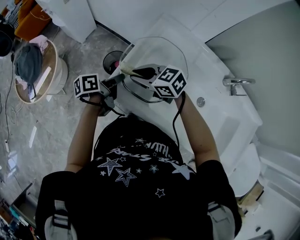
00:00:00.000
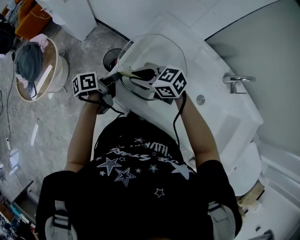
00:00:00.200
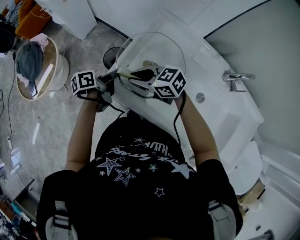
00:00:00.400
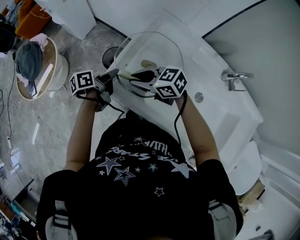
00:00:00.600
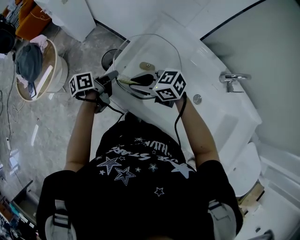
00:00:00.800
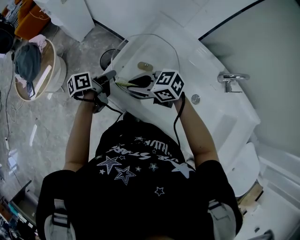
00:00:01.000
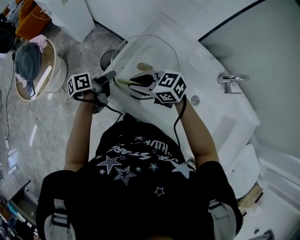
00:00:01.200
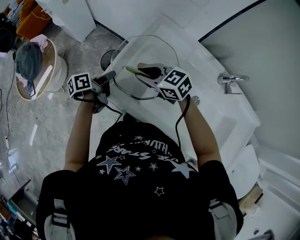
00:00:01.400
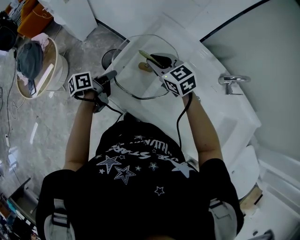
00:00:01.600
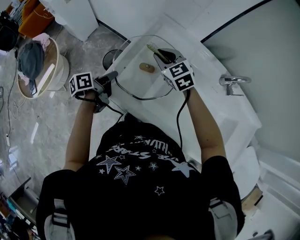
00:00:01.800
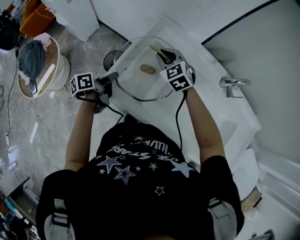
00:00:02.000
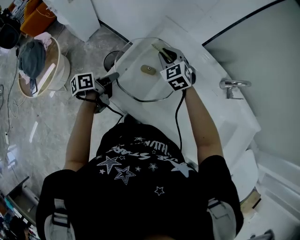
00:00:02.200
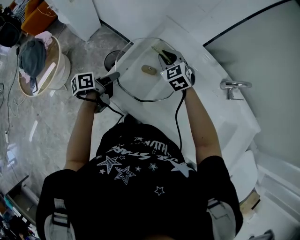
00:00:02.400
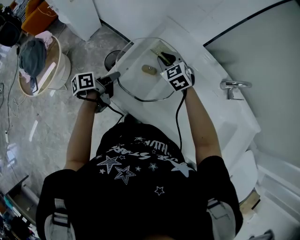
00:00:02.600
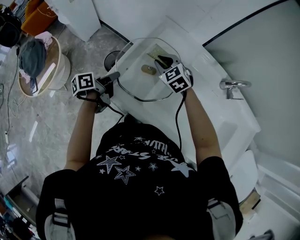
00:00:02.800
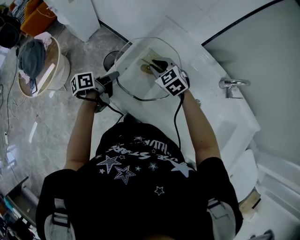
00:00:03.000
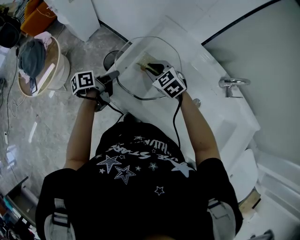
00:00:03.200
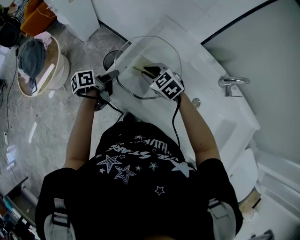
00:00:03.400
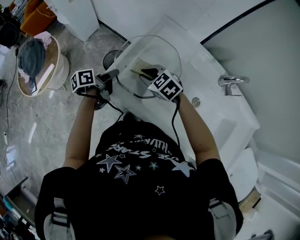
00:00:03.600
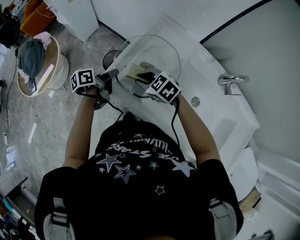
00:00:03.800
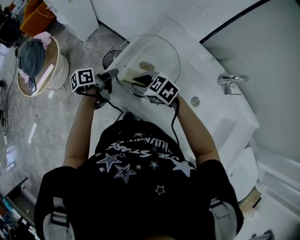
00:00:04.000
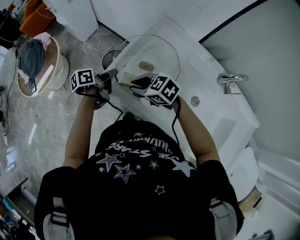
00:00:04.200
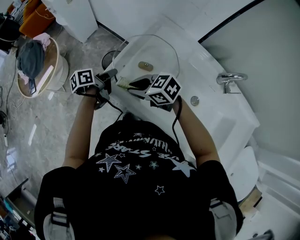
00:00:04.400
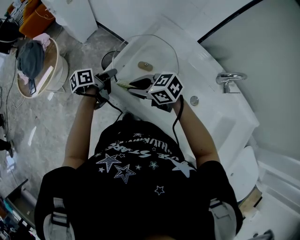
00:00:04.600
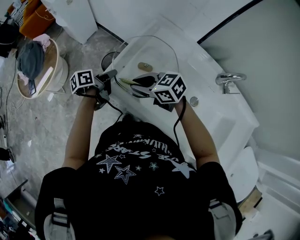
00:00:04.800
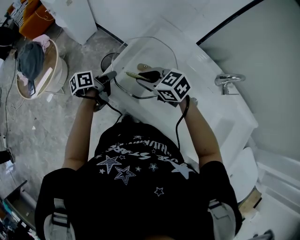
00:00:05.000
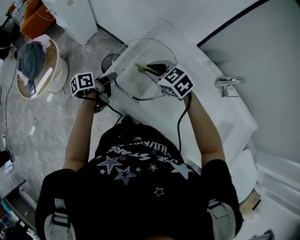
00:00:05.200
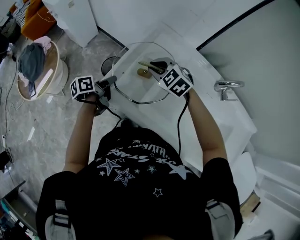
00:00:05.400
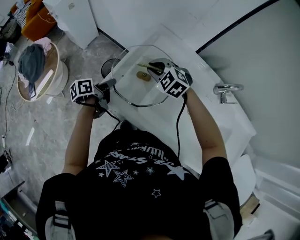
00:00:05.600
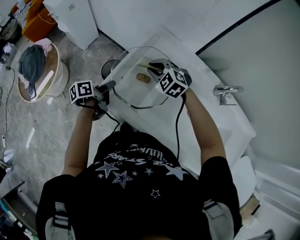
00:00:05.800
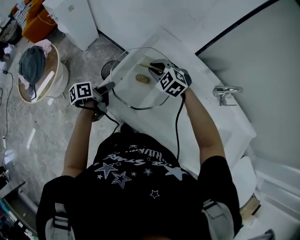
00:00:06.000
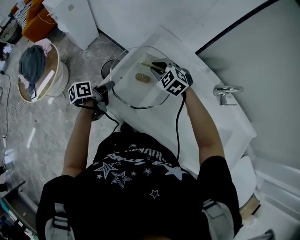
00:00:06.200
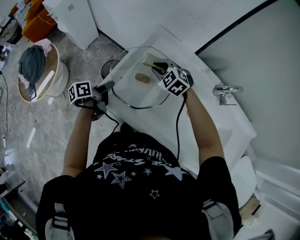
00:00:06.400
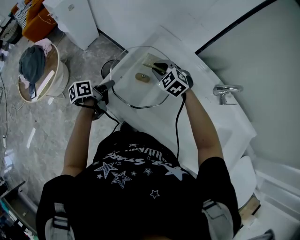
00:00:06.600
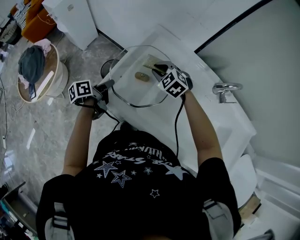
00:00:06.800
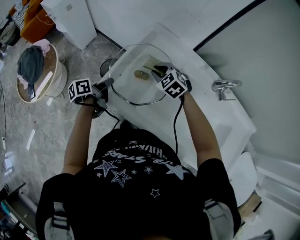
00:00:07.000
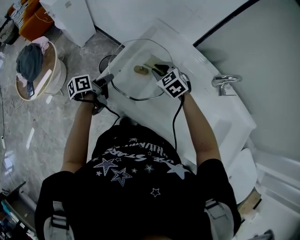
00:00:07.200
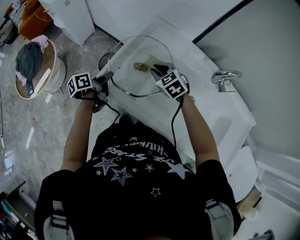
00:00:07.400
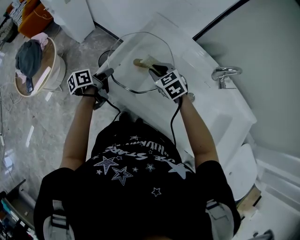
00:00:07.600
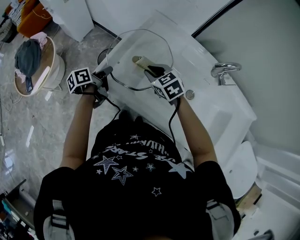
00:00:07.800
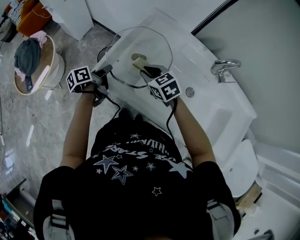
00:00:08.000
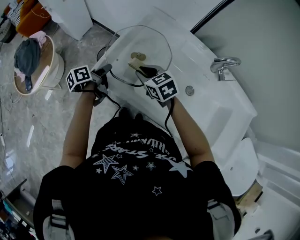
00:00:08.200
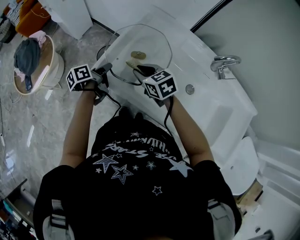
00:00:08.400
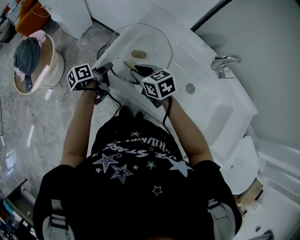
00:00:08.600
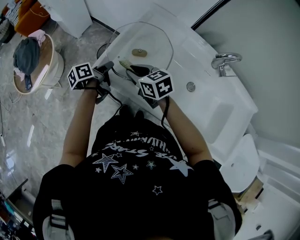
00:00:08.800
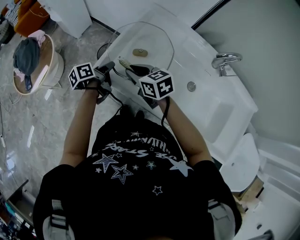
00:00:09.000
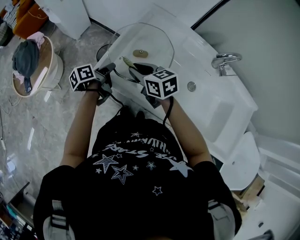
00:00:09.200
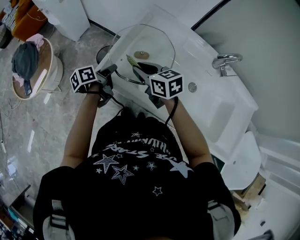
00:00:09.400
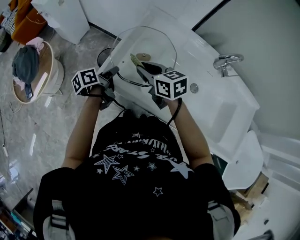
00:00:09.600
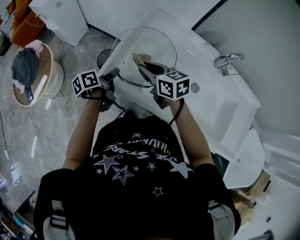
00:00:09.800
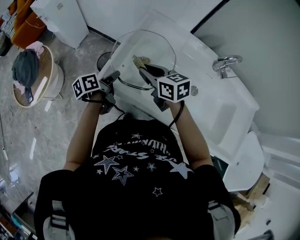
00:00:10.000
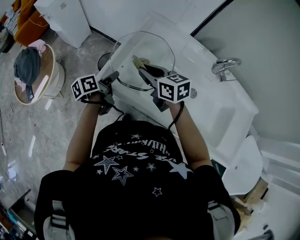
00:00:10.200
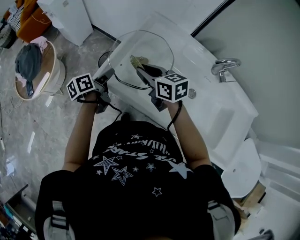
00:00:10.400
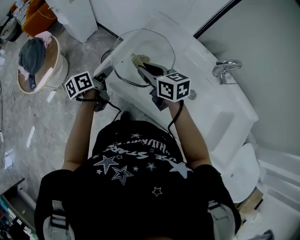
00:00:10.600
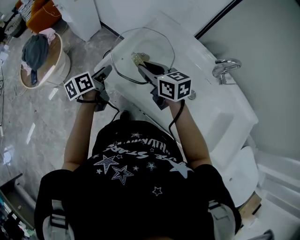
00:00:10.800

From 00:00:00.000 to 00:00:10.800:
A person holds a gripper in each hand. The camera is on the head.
From 00:00:00.000 to 00:00:01.600: The right gripper changes place by roughly 10 cm, and changes its angle by roughly 20 degrees.
From 00:00:01.600 to 00:00:03.000: The right gripper travels downward by some 5 cm, and changes its angle by roughly 20 degrees.
From 00:00:03.000 to 00:00:04.600: The right gripper moves some 15 cm, and rotates approximately 40 degrees.
From 00:00:04.600 to 00:00:06.200: The right gripper shifts by some 20 cm, and changes its angle by about 50 degrees.
From 00:00:06.200 to 00:00:07.800: The right gripper moves backward, some 10 cm, and rotates approximately 30 degrees.
From 00:00:07.800 to 00:00:09.200: The right gripper travels to the left by roughly 5 cm, and swivels about 30 degrees.
From 00:00:09.200 to 00:00:10.800: The right gripper ends up roughly 5 cm from where it was, while the left gripper shifts roughly 5 cm upward, and swivels about 20 degrees.

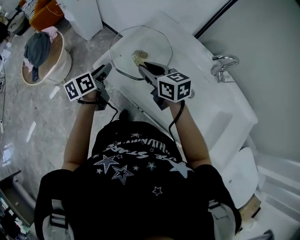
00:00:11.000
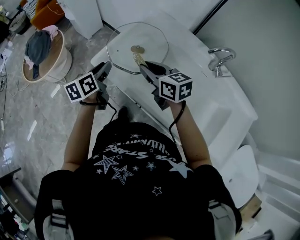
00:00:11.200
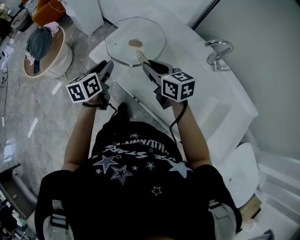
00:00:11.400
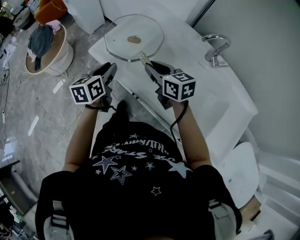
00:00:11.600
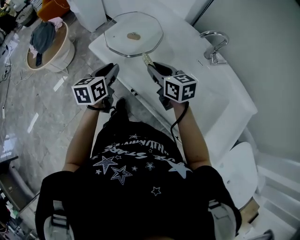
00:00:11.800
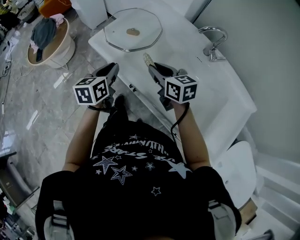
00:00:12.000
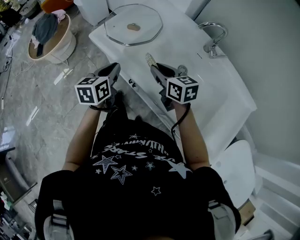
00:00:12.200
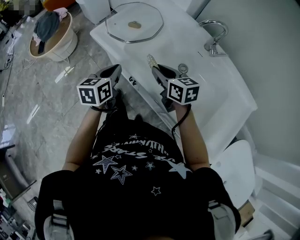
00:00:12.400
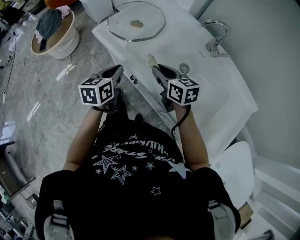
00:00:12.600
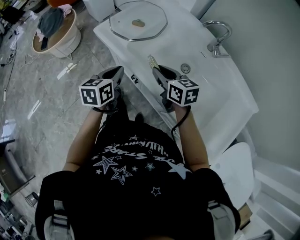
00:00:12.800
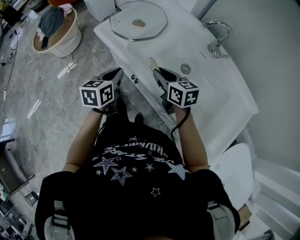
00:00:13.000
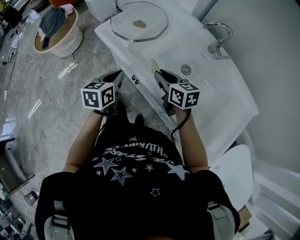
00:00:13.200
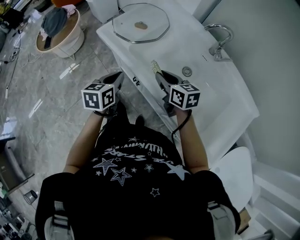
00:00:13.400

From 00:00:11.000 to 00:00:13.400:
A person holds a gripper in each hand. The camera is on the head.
From 00:00:11.000 to 00:00:12.200: Both grippers travel together backward and to the right, approximately 20 cm. The left gripper turns by approximately 20 degrees, and closes up.
From 00:00:12.200 to 00:00:13.400: The left gripper moves backward, some 5 cm.

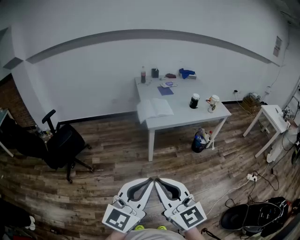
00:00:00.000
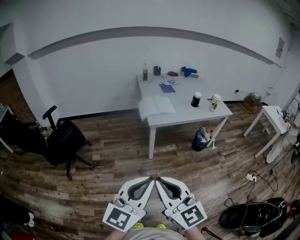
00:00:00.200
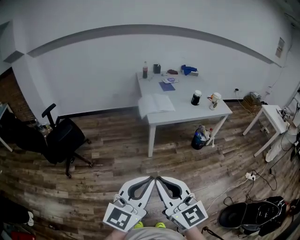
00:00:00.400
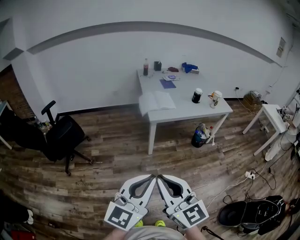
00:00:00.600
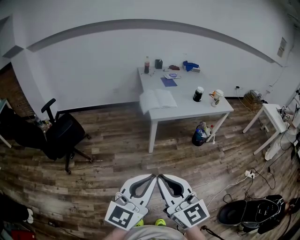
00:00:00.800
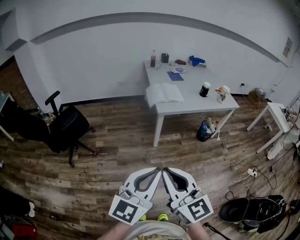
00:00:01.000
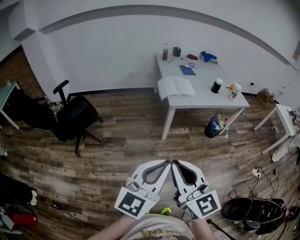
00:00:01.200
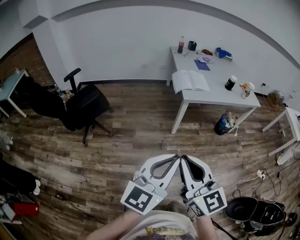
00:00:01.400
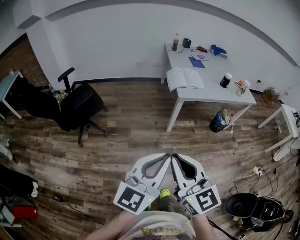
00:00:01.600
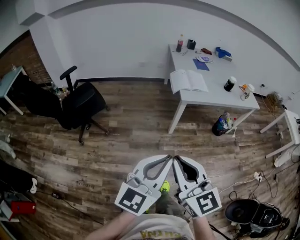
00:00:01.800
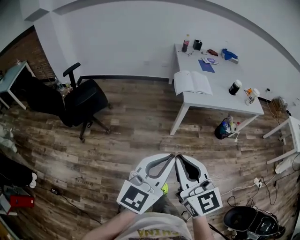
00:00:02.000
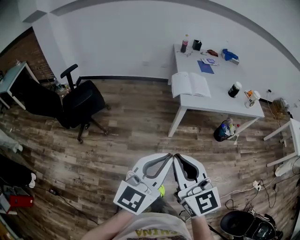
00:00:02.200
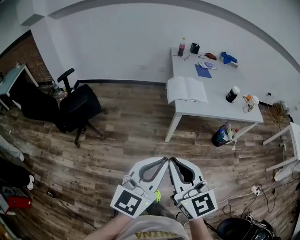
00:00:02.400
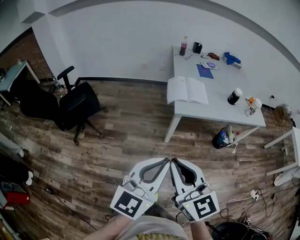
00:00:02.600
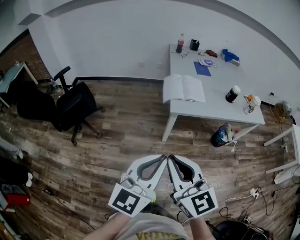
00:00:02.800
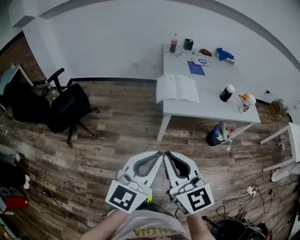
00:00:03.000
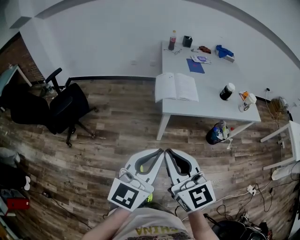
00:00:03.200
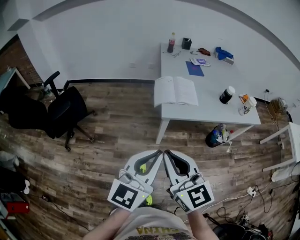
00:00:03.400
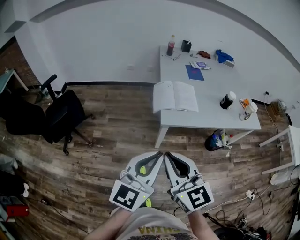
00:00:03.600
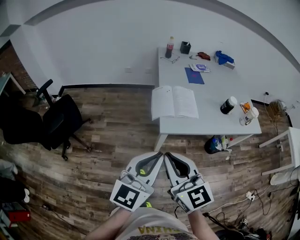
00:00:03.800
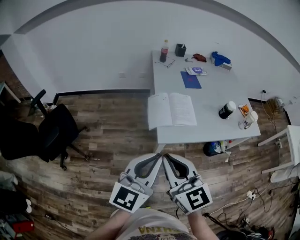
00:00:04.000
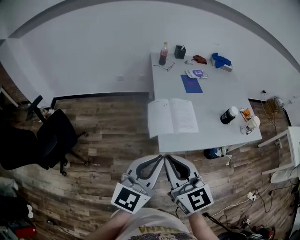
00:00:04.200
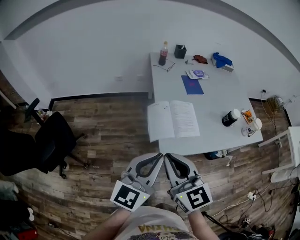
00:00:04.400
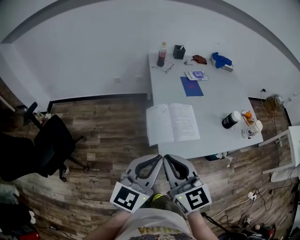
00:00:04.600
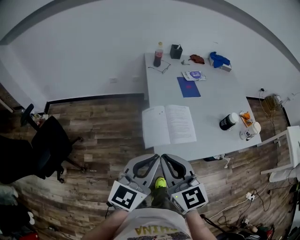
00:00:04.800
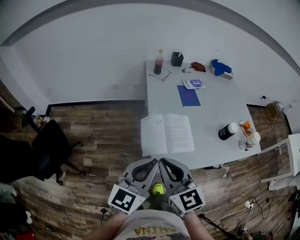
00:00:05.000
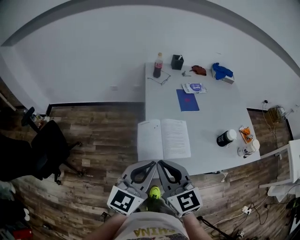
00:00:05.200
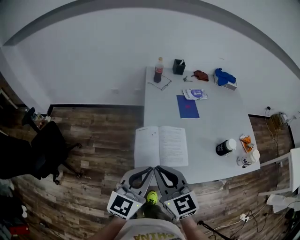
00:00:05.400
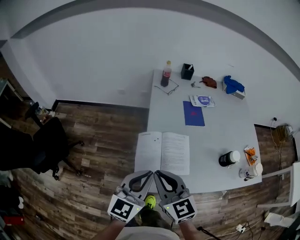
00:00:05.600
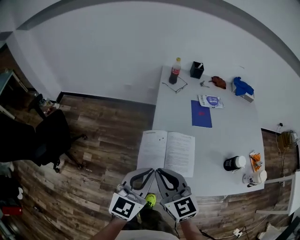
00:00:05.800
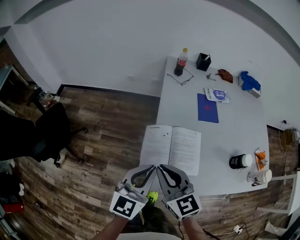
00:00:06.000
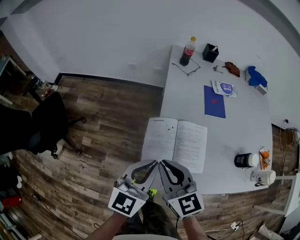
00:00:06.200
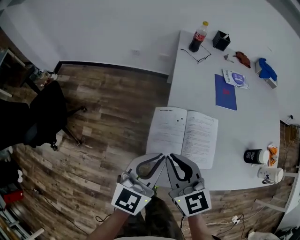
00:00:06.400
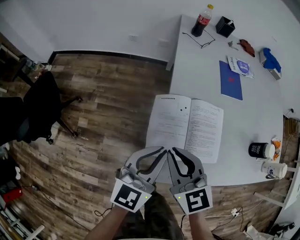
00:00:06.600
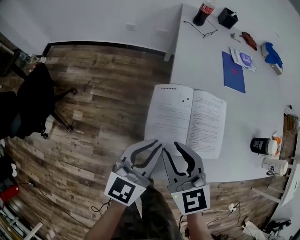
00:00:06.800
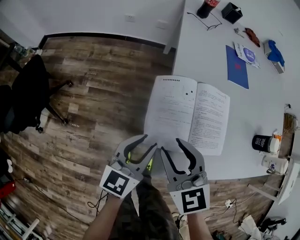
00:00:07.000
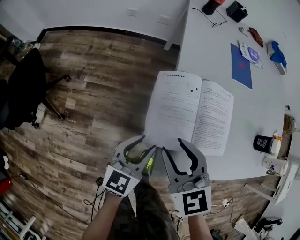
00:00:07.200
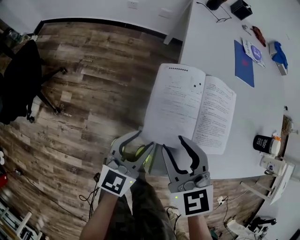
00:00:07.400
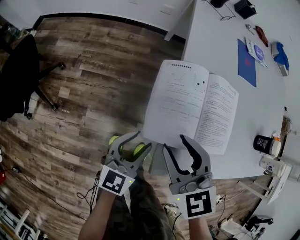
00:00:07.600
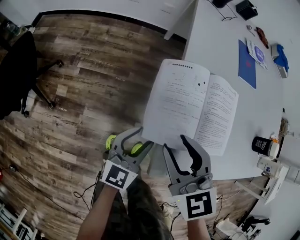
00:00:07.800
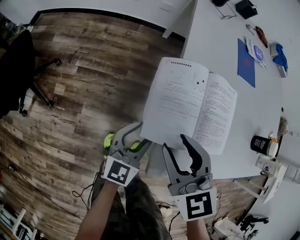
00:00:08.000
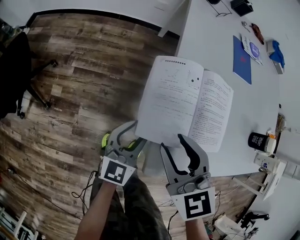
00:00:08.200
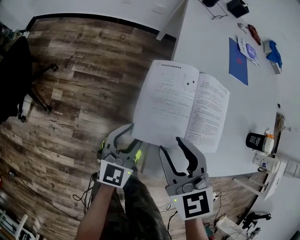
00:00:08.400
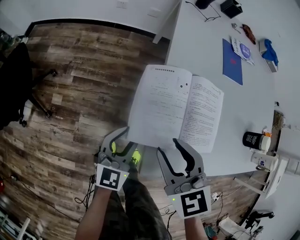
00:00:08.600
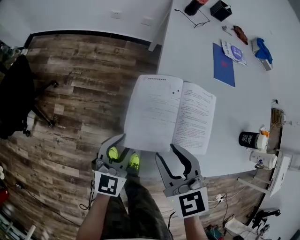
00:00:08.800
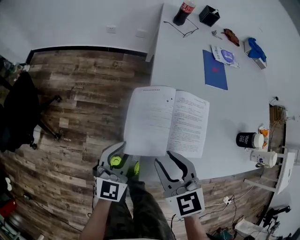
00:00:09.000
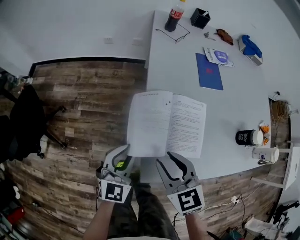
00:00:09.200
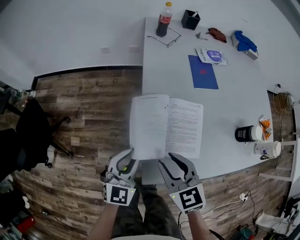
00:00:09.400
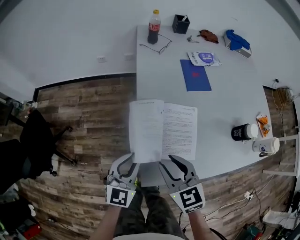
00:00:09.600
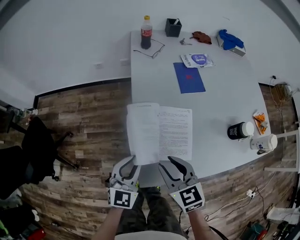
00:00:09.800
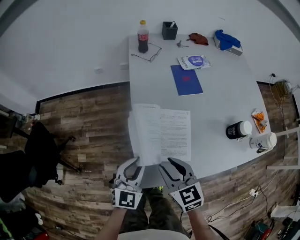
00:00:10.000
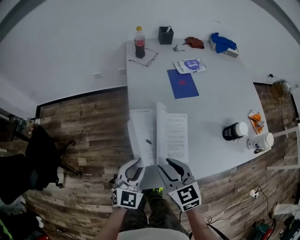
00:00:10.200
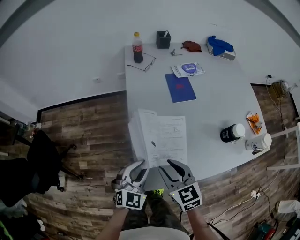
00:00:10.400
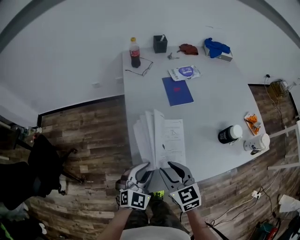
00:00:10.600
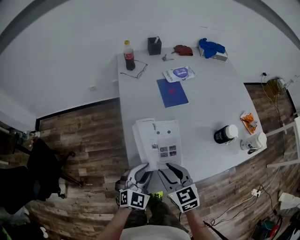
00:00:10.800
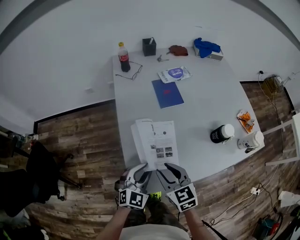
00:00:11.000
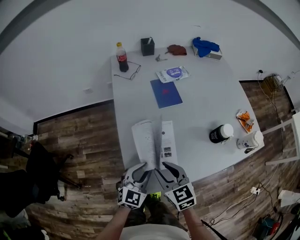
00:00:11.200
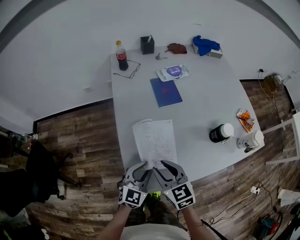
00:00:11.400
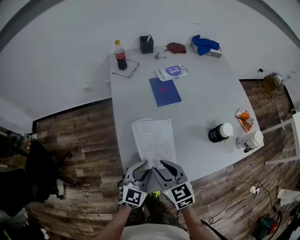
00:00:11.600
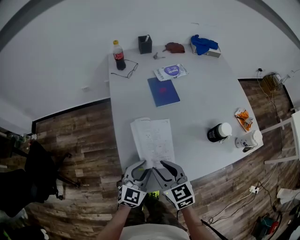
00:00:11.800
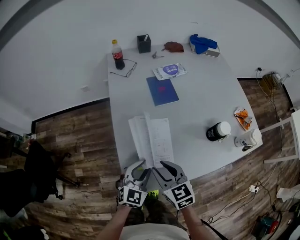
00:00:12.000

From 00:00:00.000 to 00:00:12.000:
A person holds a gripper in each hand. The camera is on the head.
From 00:00:00.000 to 00:00:01.600: The left gripper heads to the left, covering roughly 15 cm; the right gripper moves to the left and downward, some 15 cm.
From 00:00:01.600 to 00:00:03.000: Both grippers move forward and to the right, roughly 25 cm.
From 00:00:03.000 to 00:00:04.400: The two grippers go about 35 cm forward.
From 00:00:04.400 to 00:00:06.000: The two grippers go some 20 cm forward and downward.
From 00:00:06.000 to 00:00:07.600: The left gripper travels downward by approximately 30 cm, and opens its fingers, while the right gripper shifts some 20 cm downward, and opens its fingers.
From 00:00:07.600 to 00:00:09.000: The right gripper travels upward by some 5 cm; the left gripper shifts approximately 10 cm upward.
From 00:00:09.000 to 00:00:10.400: The grippers both shift to the right and upward by approximately 15 cm. The left gripper swivels approximately 20 degrees.
From 00:00:10.400 to 00:00:12.000: The left gripper heads to the right, covering about 10 cm; the right gripper goes about 5 cm to the right.
